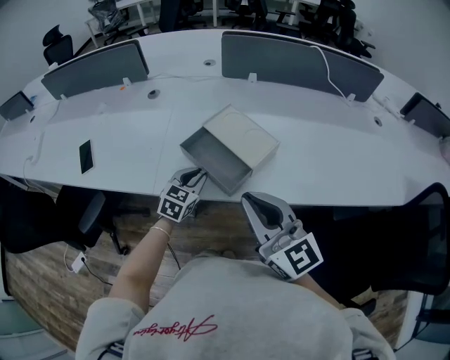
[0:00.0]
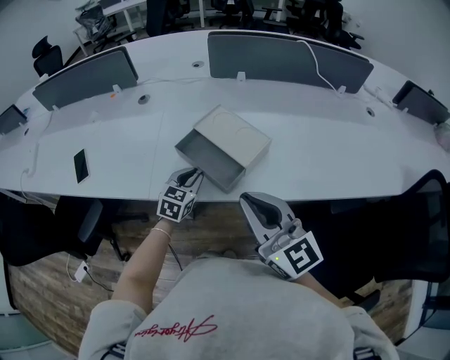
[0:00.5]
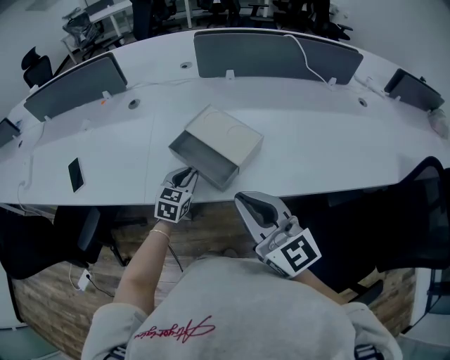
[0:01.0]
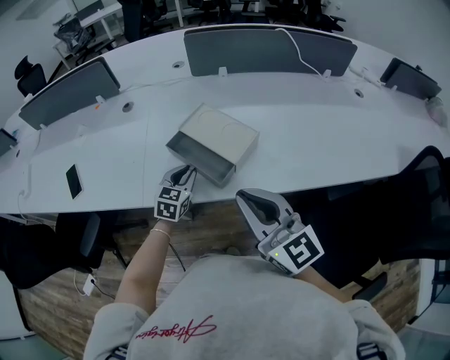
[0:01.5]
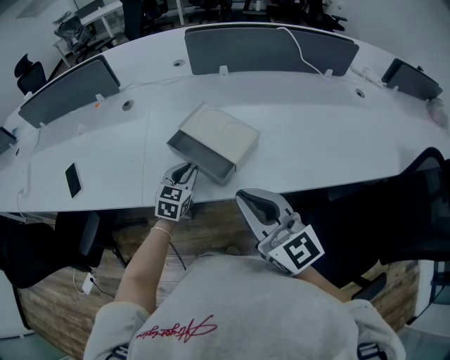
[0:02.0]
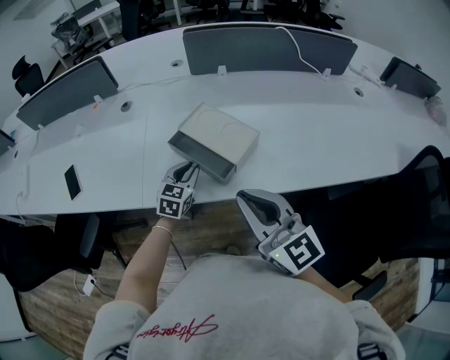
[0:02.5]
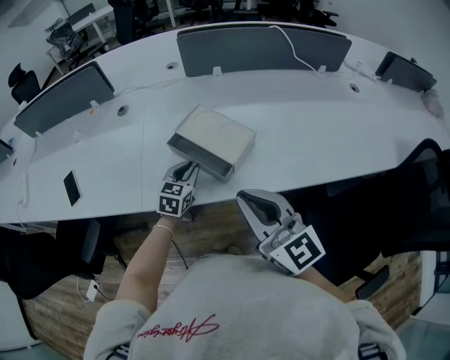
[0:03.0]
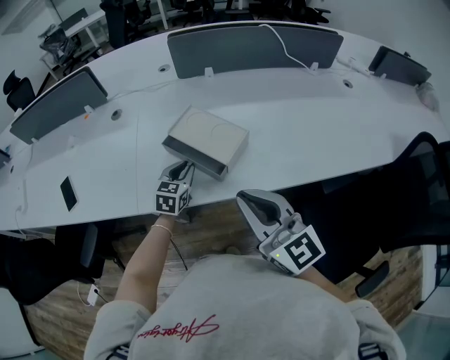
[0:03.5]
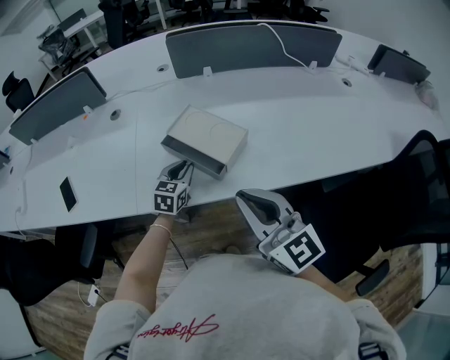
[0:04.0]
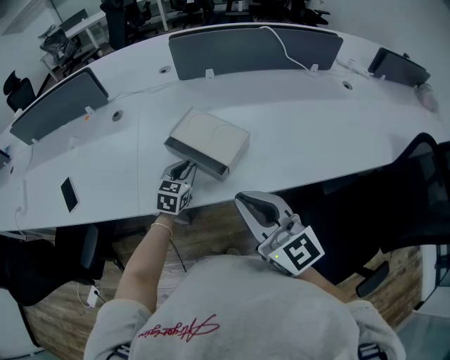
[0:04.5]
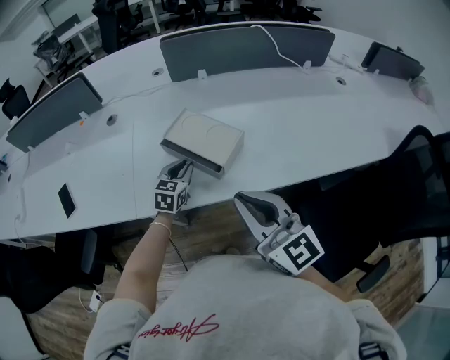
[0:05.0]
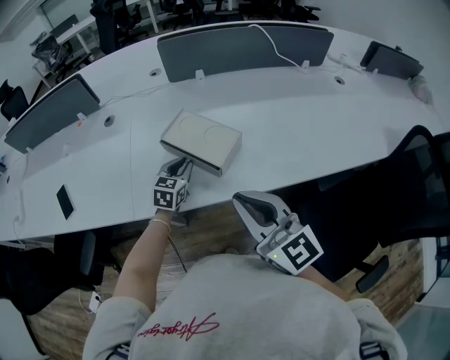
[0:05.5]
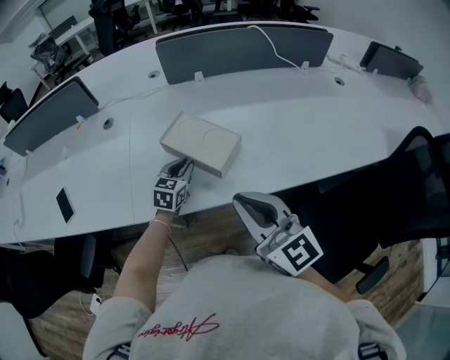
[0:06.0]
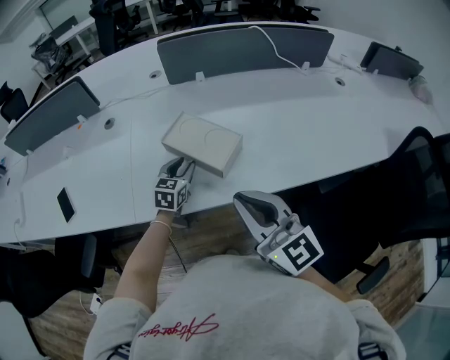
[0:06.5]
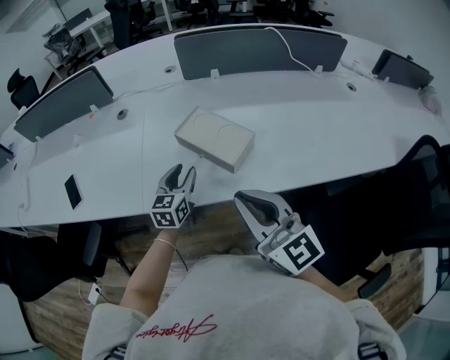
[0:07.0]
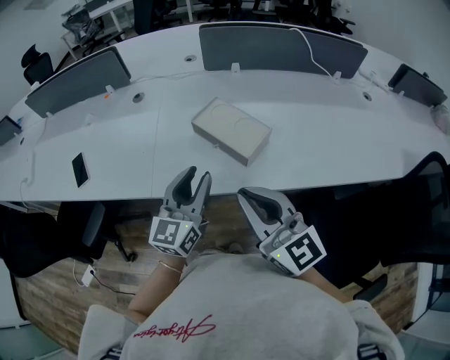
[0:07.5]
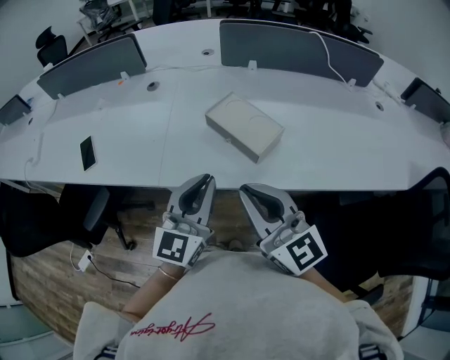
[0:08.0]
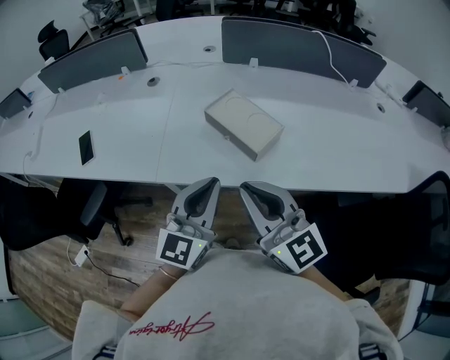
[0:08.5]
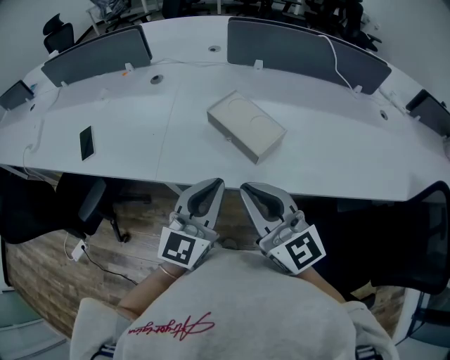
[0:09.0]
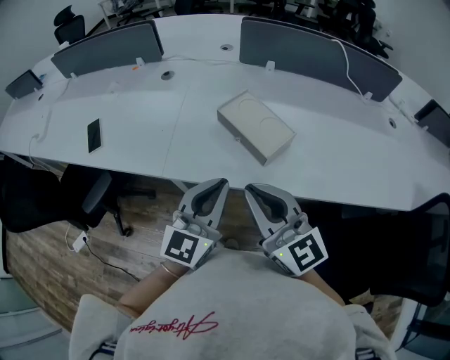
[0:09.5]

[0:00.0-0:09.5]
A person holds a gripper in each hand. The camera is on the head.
0.0 to 4.0 s: The grippers move only a little.
4.0 to 5.5 s: The grippers move only a little.
5.5 to 7.5 s: The left gripper moves upward and backward, approximately 20 cm, and points its fingers approximately 30 degrees further upward, while the right gripper shifts by approximately 5 cm.
7.5 to 9.5 s: The left gripper goes roughly 5 cm backward, and closes.

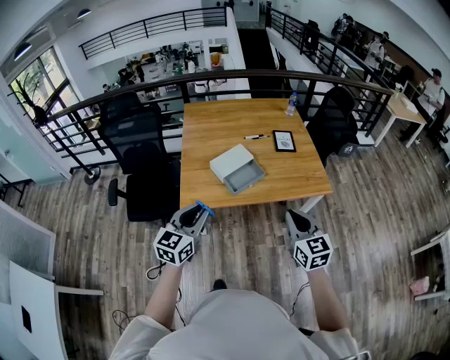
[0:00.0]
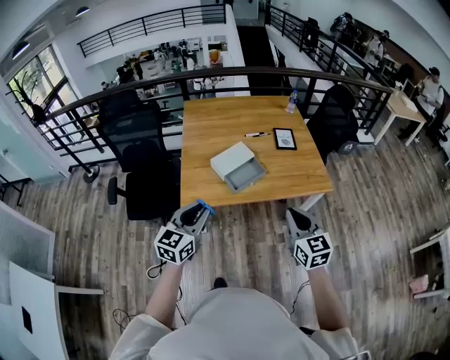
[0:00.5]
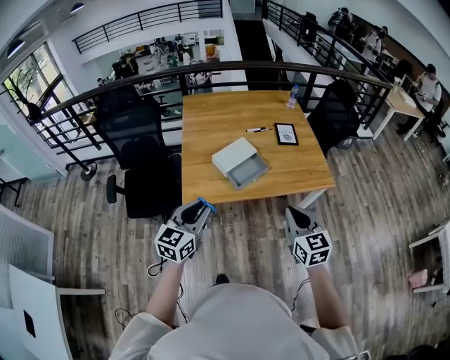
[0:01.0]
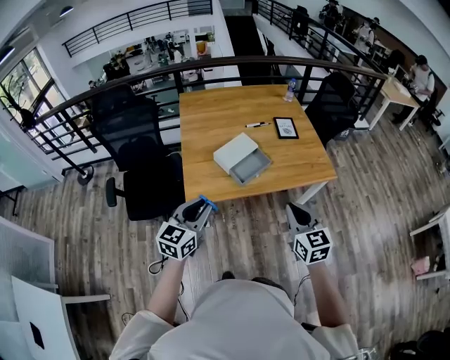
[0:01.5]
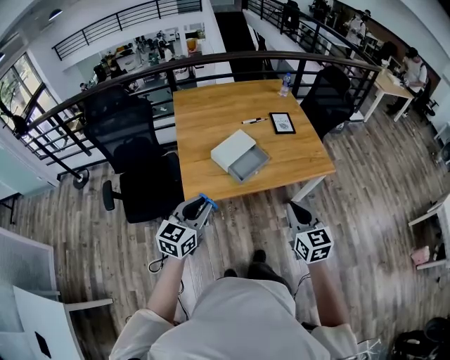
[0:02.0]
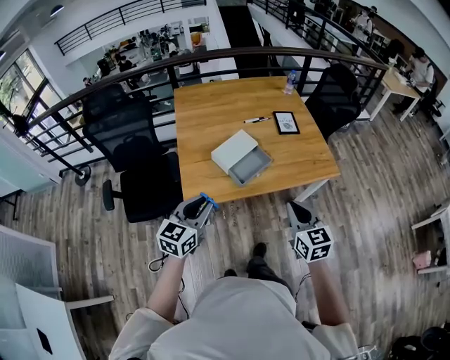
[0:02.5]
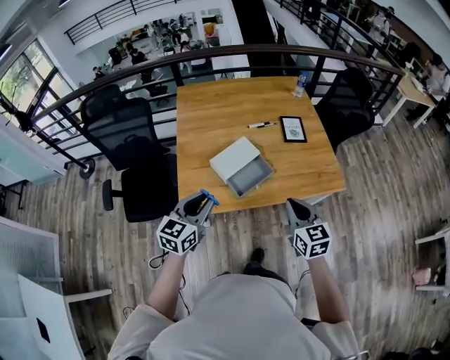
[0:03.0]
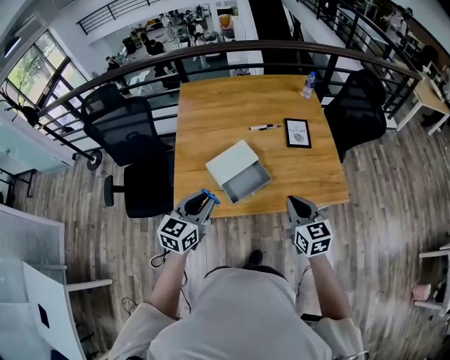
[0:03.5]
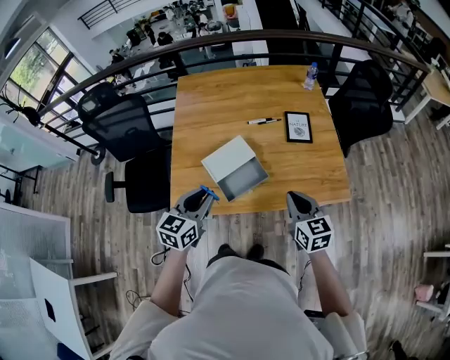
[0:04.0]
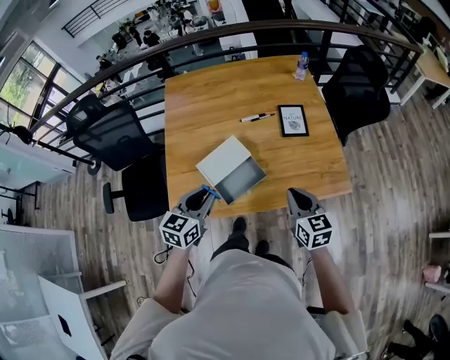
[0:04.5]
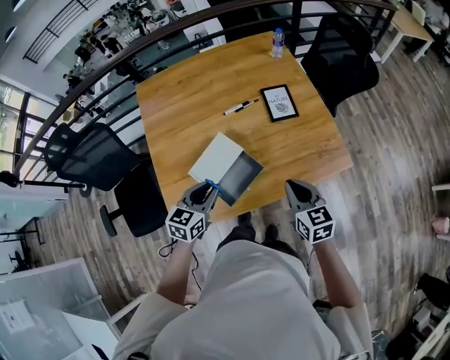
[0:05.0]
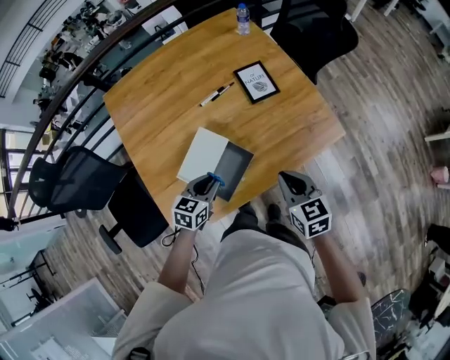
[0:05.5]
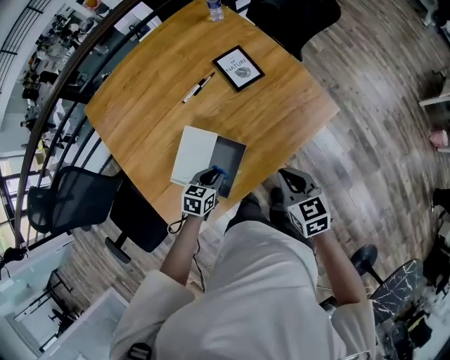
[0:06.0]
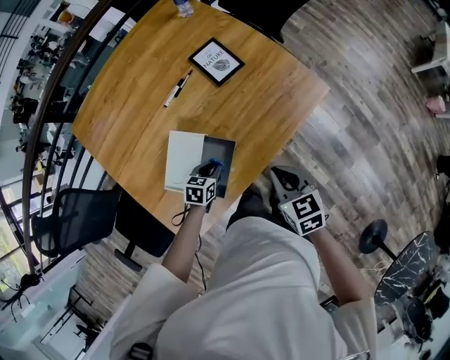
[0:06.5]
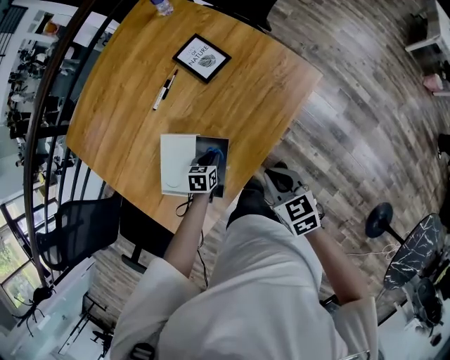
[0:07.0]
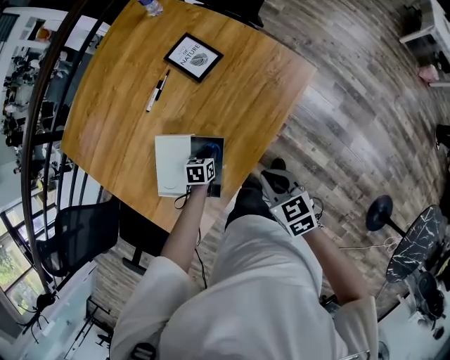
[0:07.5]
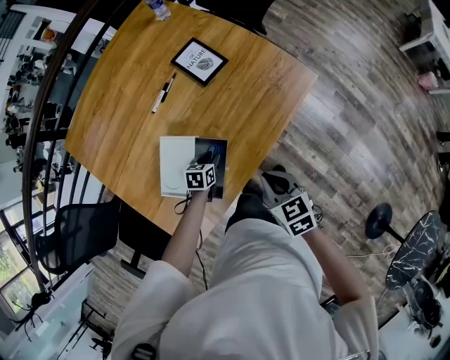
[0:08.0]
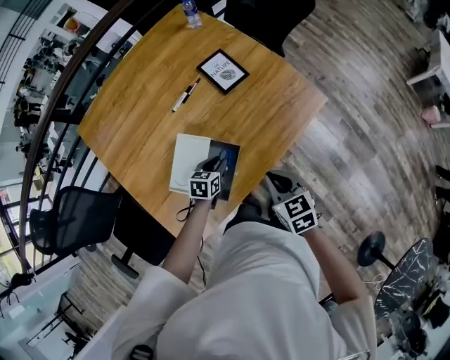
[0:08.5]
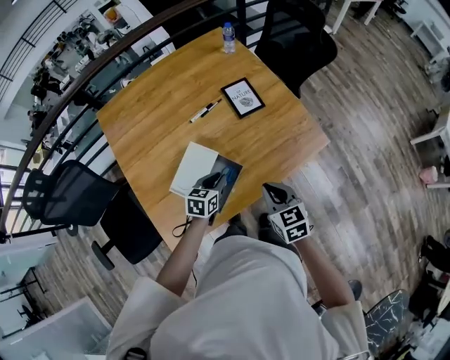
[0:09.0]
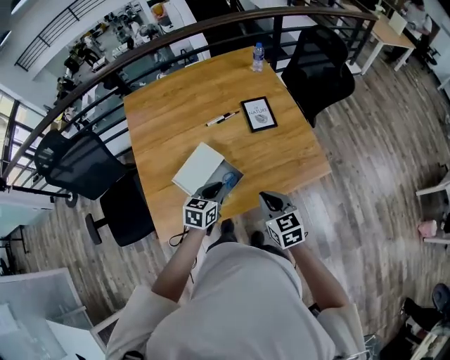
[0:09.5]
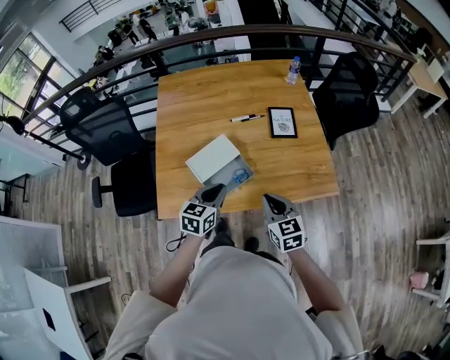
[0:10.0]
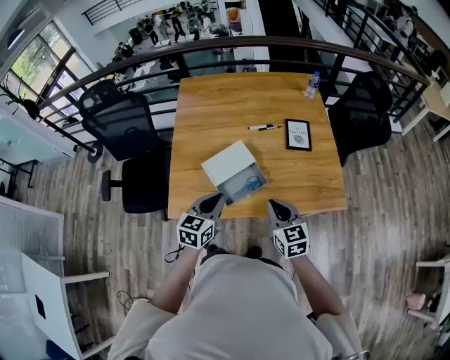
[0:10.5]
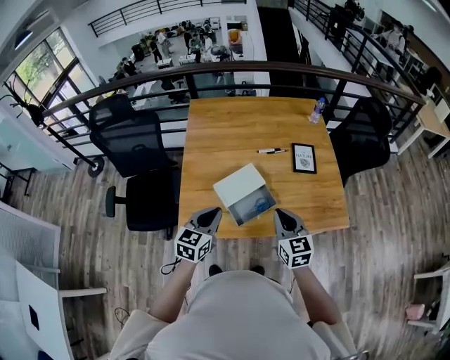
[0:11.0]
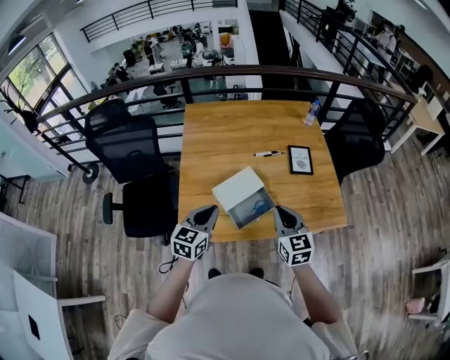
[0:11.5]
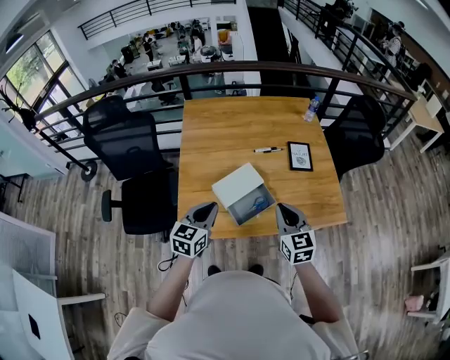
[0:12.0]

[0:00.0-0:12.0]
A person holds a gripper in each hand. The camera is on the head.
0.0 to 2.0 s: Both grippers travel together to the left, some 10 cm.
2.0 to 4.0 s: The two grippers go approximately 30 cm forward and to the right.
4.0 to 6.0 s: The right gripper shifts some 10 cm downward, and swivels approximately 30 degrees. Meanwhile the left gripper travels downward by approximately 25 cm, and turns by about 50 degrees.
6.0 to 8.0 s: The left gripper moves downward and forward, approximately 10 cm. Meanwhile the right gripper moves downward, about 5 cm.
8.0 to 10.0 s: The left gripper goes approximately 30 cm upward, swivels approximately 50 degrees, and closes up, while the right gripper moves upward, approximately 10 cm, and rotates about 40 degrees.
10.0 to 12.0 s: The grippers both shift to the left and upward by some 15 cm.

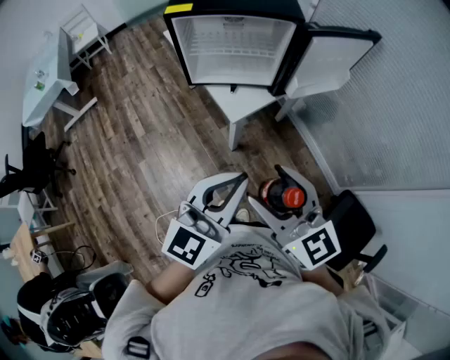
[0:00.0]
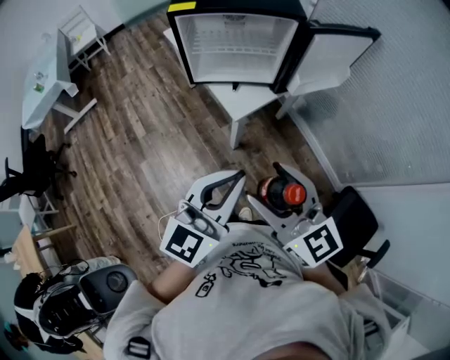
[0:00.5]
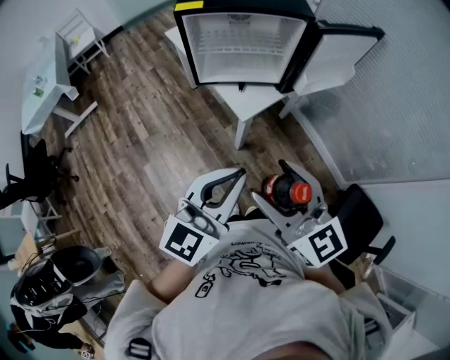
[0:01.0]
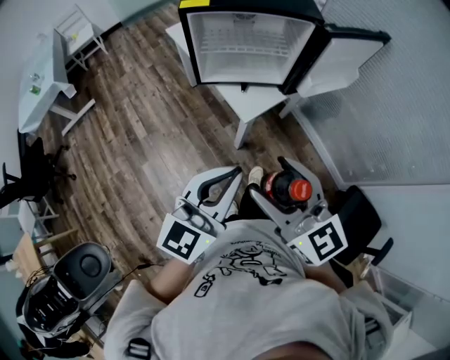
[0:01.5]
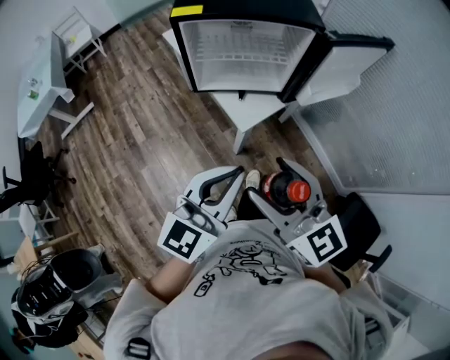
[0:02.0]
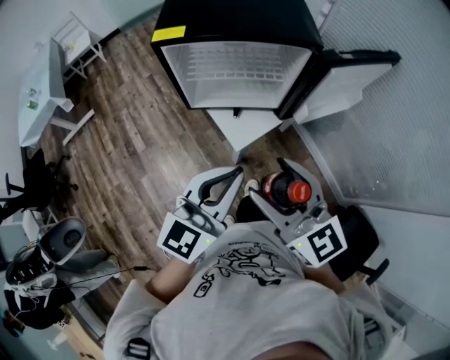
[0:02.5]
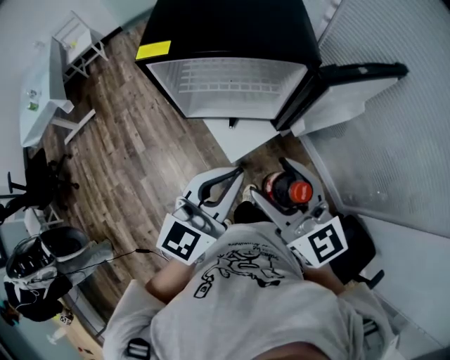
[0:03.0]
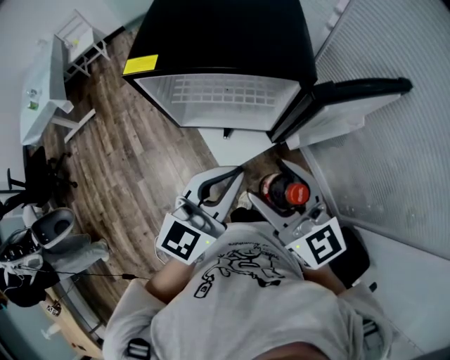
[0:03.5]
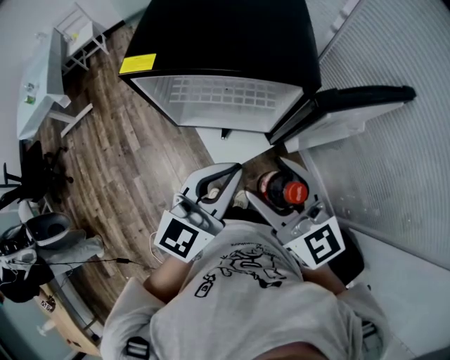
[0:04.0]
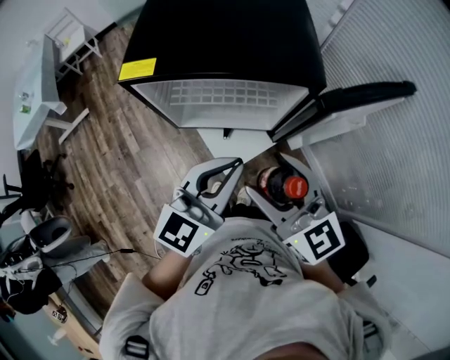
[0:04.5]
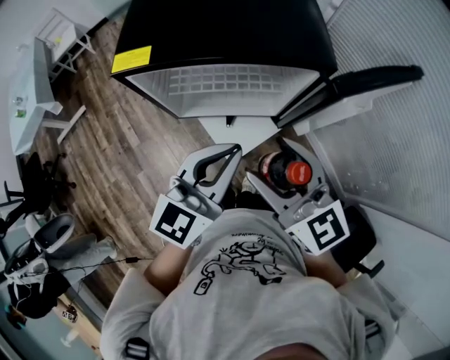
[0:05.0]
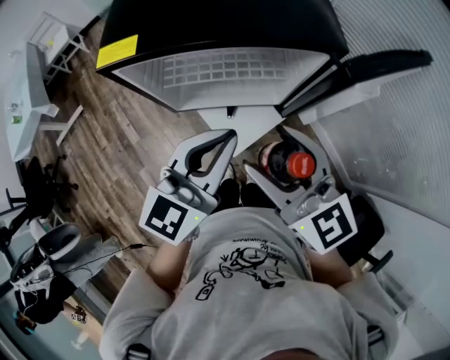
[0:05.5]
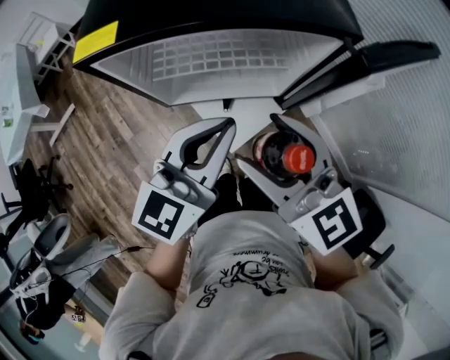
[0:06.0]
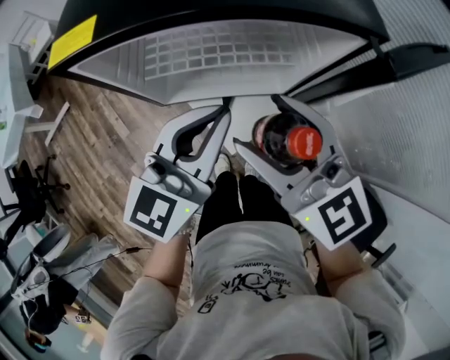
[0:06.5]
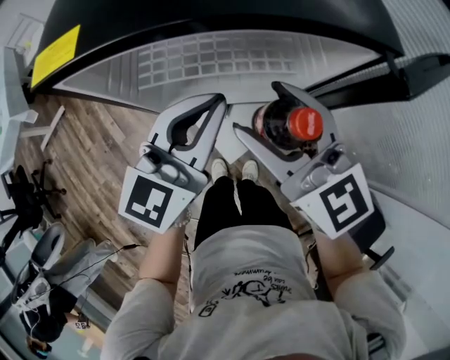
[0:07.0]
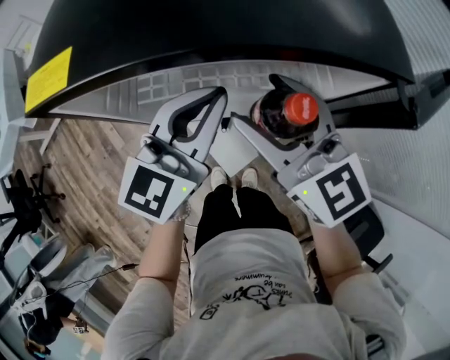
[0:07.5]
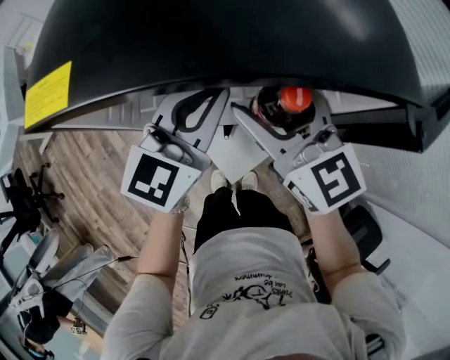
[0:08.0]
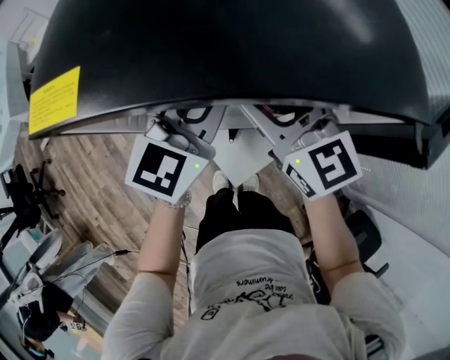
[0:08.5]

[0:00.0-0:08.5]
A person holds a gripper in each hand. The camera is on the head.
0.0 to 2.0 s: The two grippers go roughly 10 cm forward and to the left.
2.0 to 4.0 s: The two grippers go approximately 25 cm forward and to the right.
4.0 to 6.5 s: The two grippers go approximately 15 cm forward, downward and to the left.
6.5 to 8.5 s: Both grippers move forward, approximately 15 cm.
